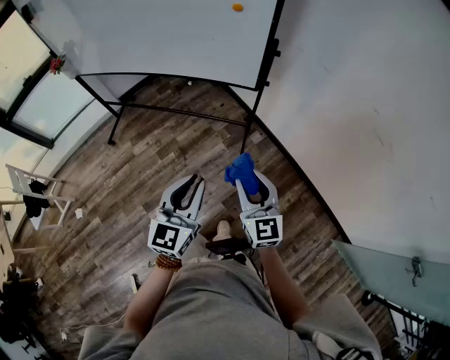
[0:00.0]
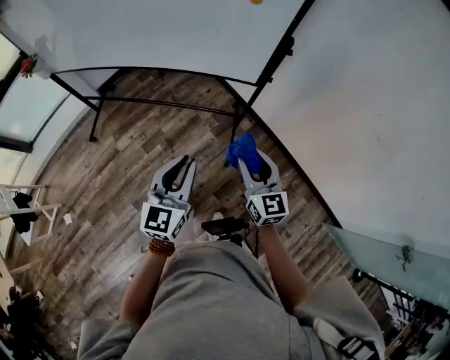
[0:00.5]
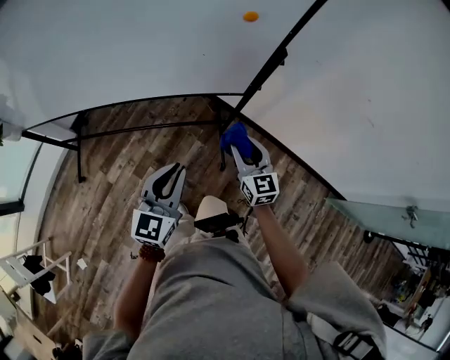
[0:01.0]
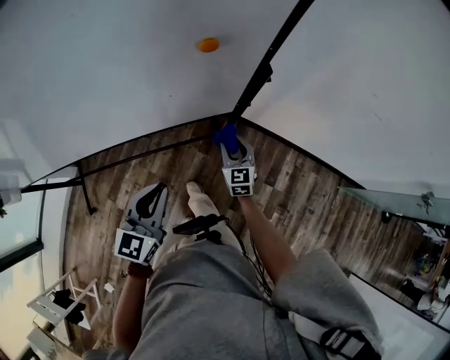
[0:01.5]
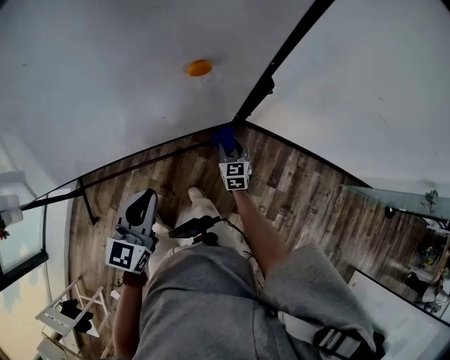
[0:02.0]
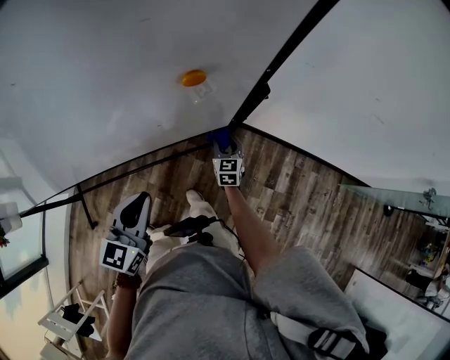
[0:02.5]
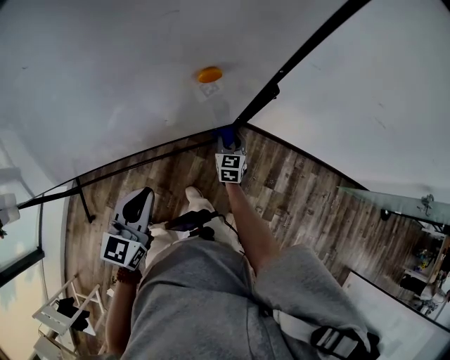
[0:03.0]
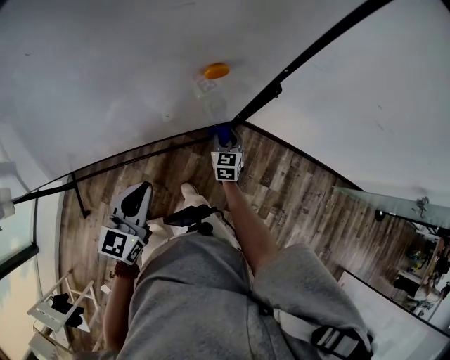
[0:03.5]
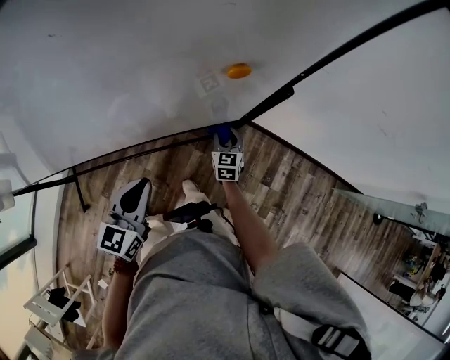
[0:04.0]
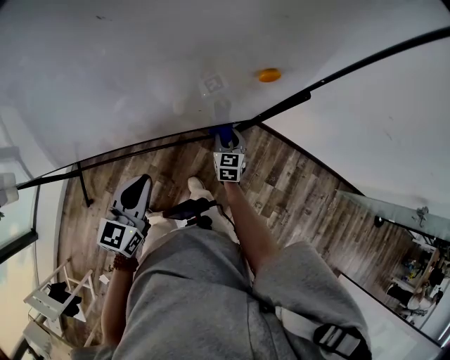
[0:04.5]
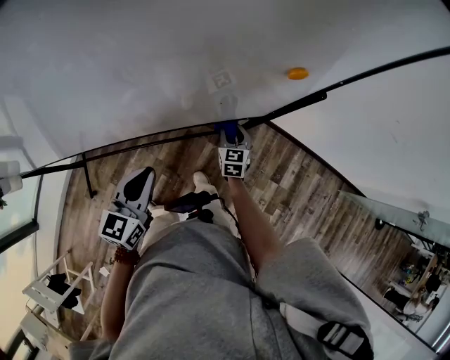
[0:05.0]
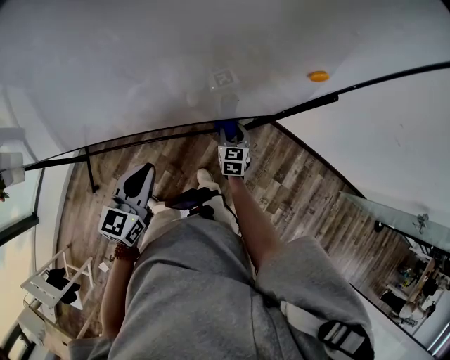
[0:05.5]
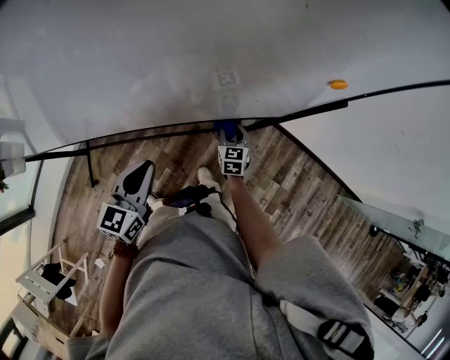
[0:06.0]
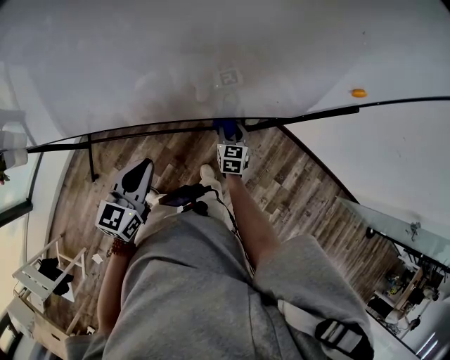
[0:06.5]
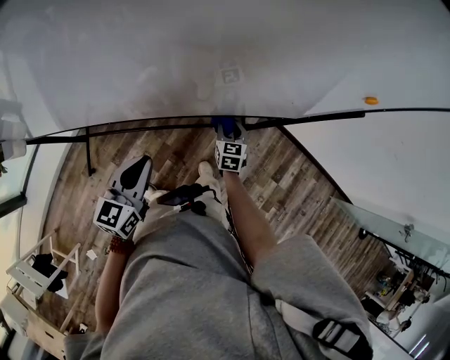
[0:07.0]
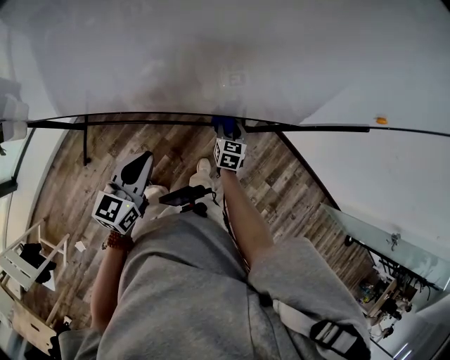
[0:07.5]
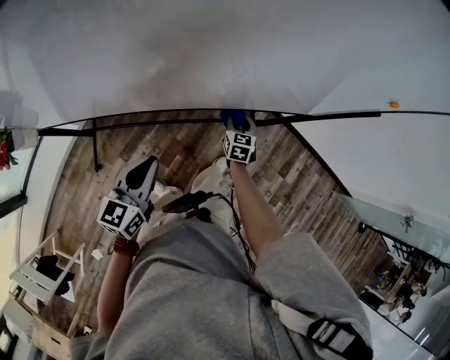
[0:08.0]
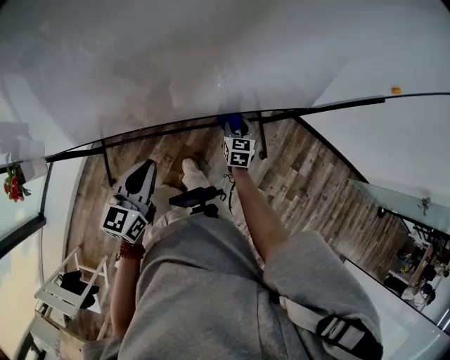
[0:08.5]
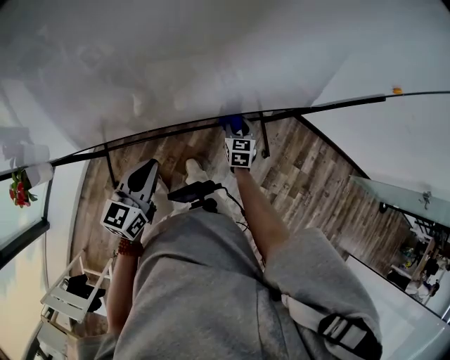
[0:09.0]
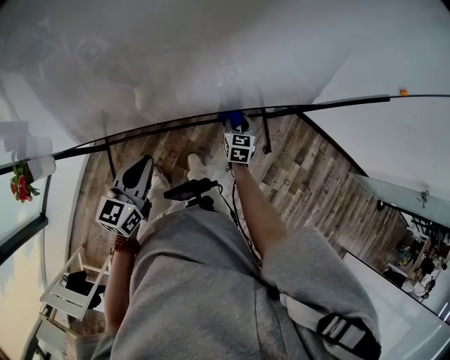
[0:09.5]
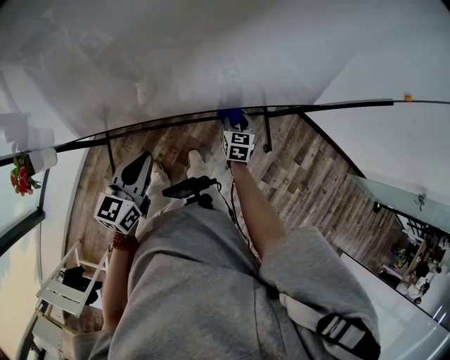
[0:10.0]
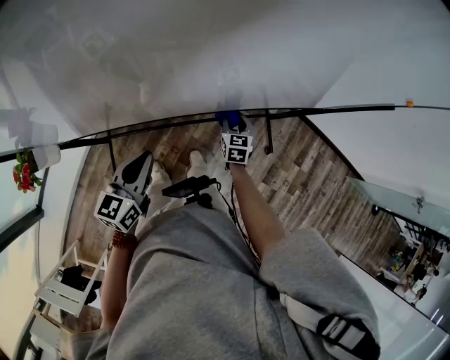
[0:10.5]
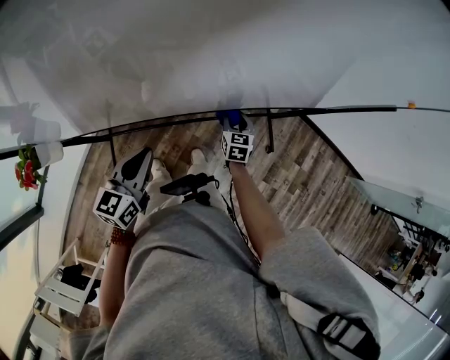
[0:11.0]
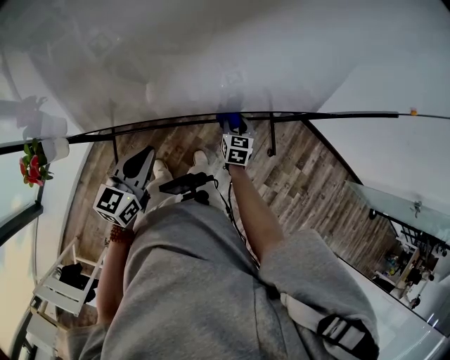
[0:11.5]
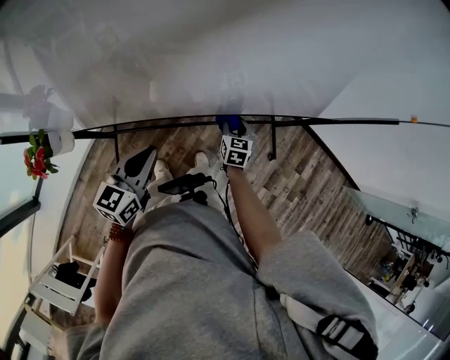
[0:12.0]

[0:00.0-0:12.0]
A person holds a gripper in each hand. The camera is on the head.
0:00.0 to 0:02.0: The two grippers travel together, approximately 40 cm. The left gripper swivels about 30 degrees; the right gripper changes its angle by roughly 40 degrees.
0:02.0 to 0:04.0: The grippers stay close to where they were, moving slightly.
0:04.0 to 0:06.0: Both grippers travel together to the left, about 15 cm.
0:06.0 to 0:08.0: The right gripper goes about 15 cm to the left. Meanwhile the left gripper shifts approximately 20 cm to the left and backward.
0:08.0 to 0:10.0: The grippers both shift to the left by about 10 cm.
0:10.0 to 0:12.0: Both grippers travel together to the left, approximately 10 cm.

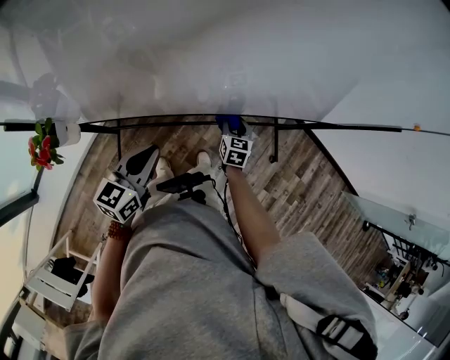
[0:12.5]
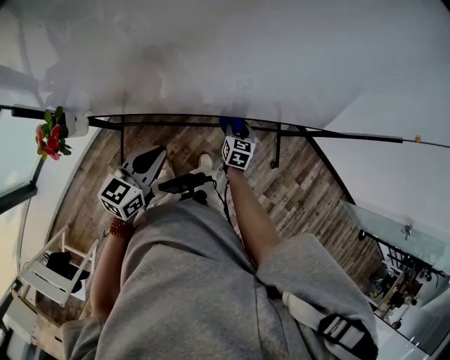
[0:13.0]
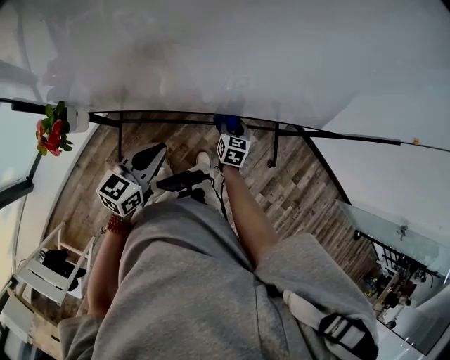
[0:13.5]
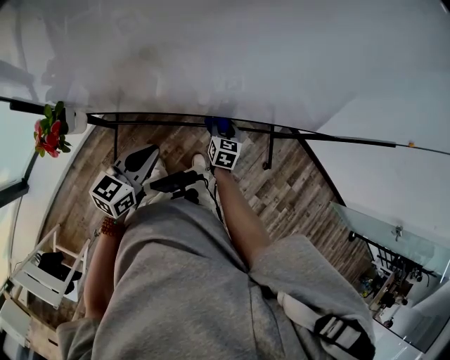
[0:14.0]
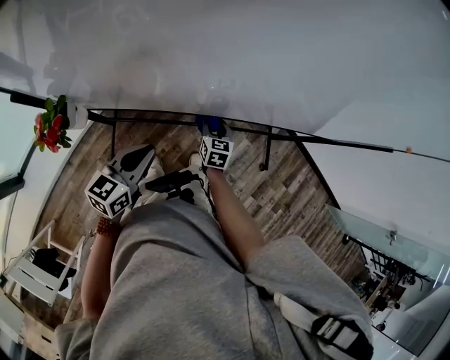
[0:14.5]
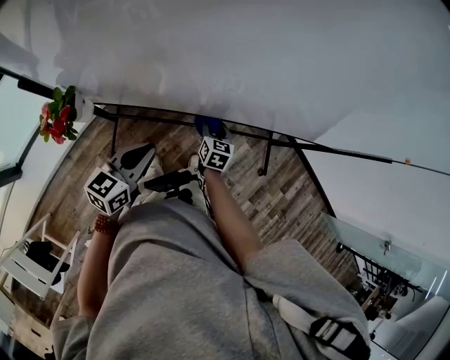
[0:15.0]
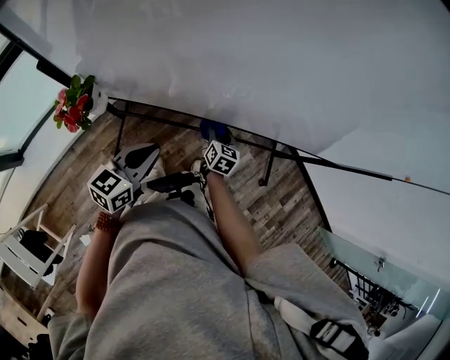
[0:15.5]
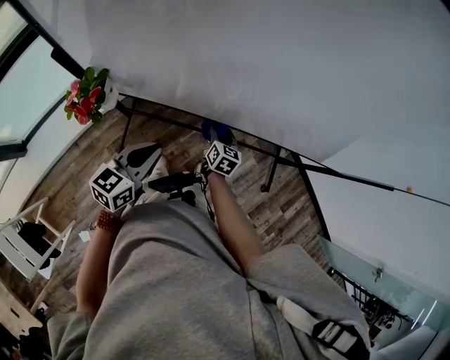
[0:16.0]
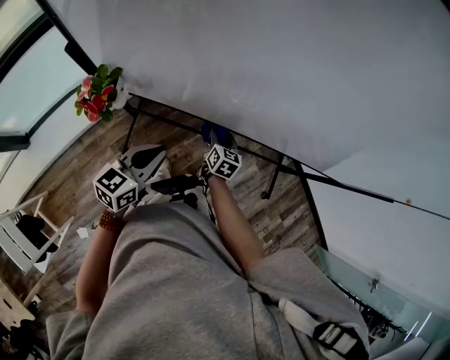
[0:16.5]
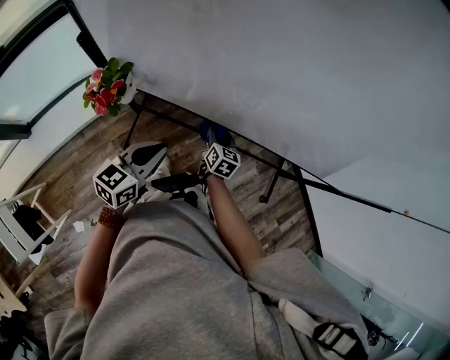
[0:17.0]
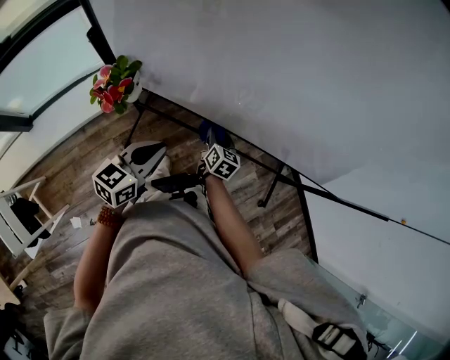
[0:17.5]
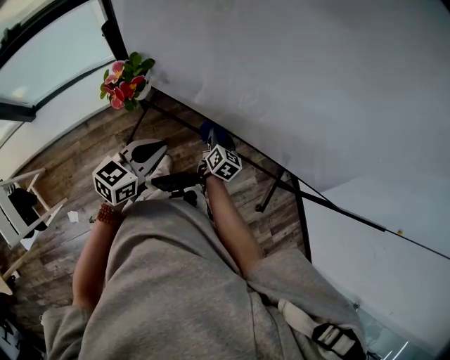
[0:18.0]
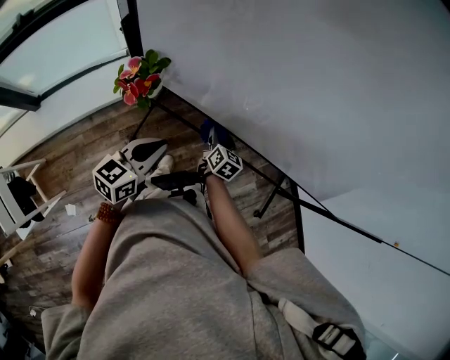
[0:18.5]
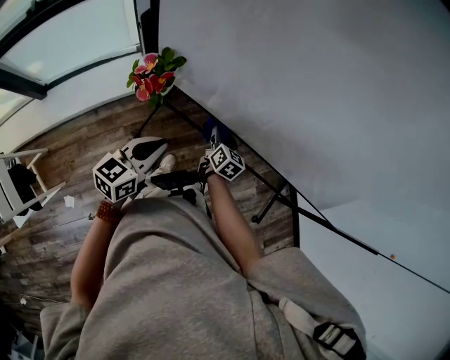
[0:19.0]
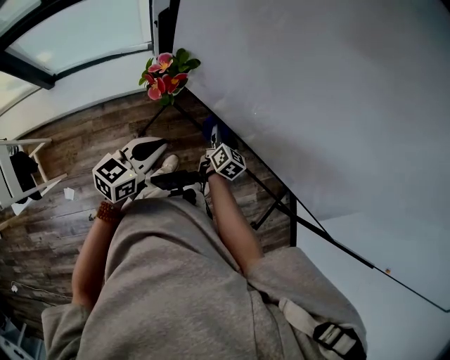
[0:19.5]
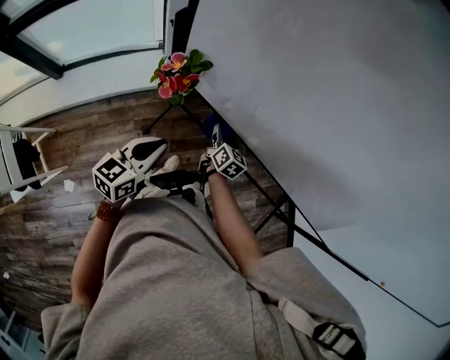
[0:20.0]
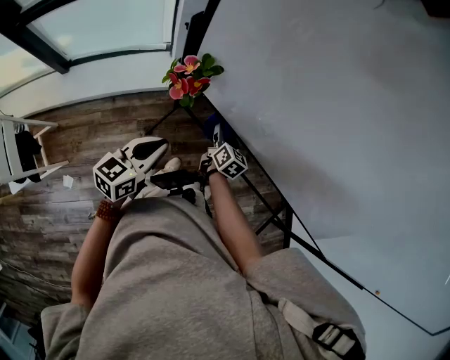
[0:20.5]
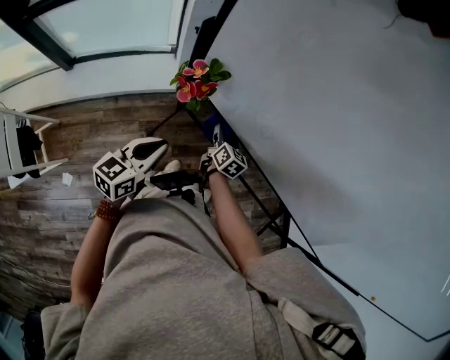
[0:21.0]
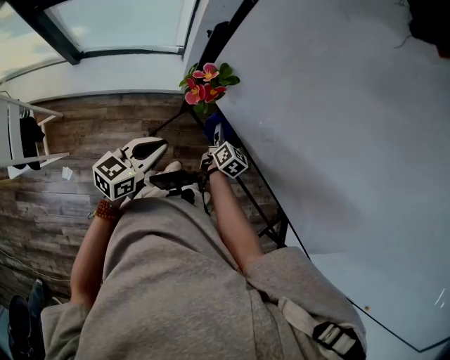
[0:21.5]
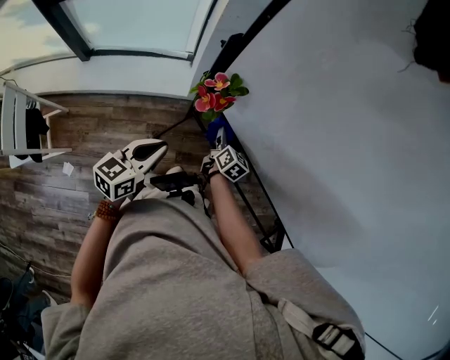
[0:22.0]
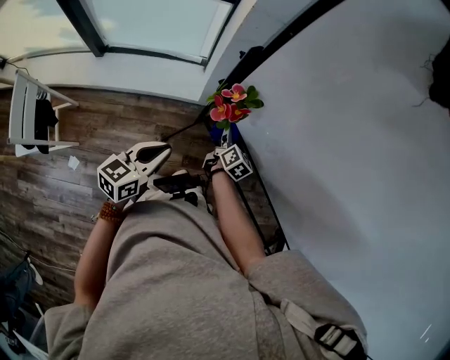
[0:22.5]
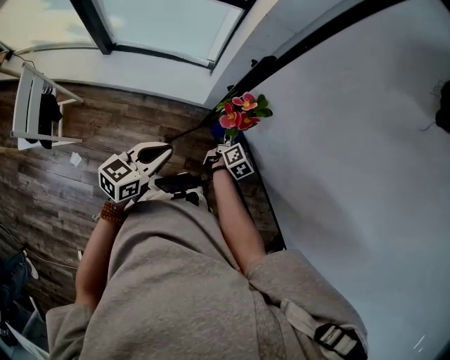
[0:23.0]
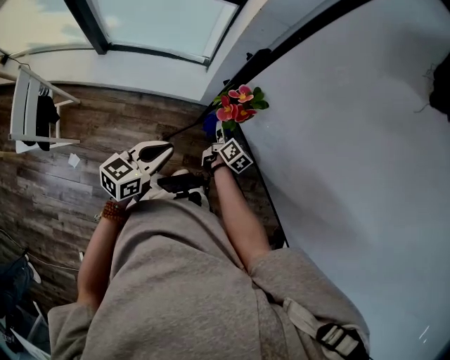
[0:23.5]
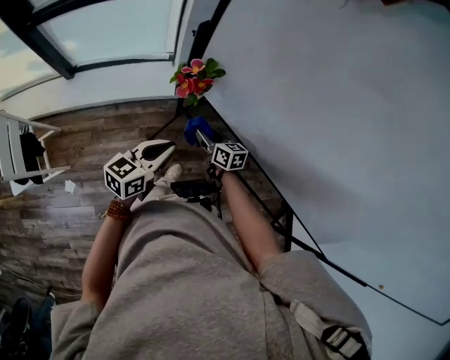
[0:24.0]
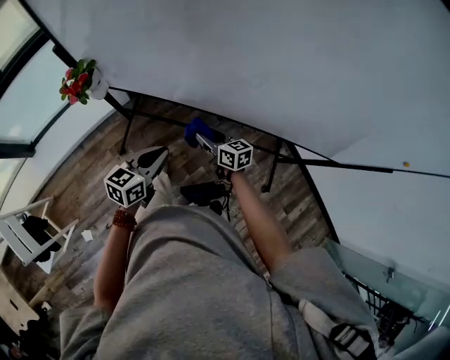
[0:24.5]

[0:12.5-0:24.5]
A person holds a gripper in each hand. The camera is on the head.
0:12.5 to 0:14.5: The left gripper ends up roughly 5 cm from where it was. Meanwhile the right gripper travels to the left by roughly 10 cm.
0:14.5 to 0:16.5: The left gripper shifts approximately 5 cm to the left, while the right gripper is displaced to the left by about 10 cm.
0:16.5 to 0:18.5: The grippers both shift to the left by some 5 cm.
0:18.5 to 0:20.5: The right gripper shifts some 10 cm to the left; the left gripper travels to the left by some 5 cm.
0:20.5 to 0:22.5: The two grippers go about 10 cm to the left.
0:22.5 to 0:24.5: The left gripper is displaced to the right by about 30 cm, and turns by about 30 degrees. The right gripper moves to the right and backward, roughly 35 cm.

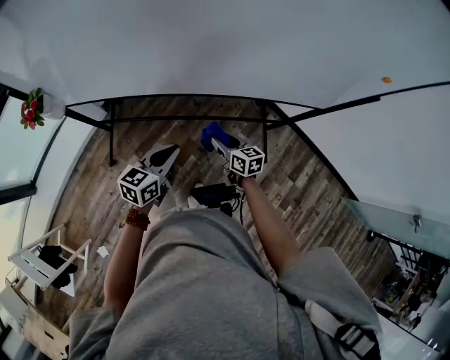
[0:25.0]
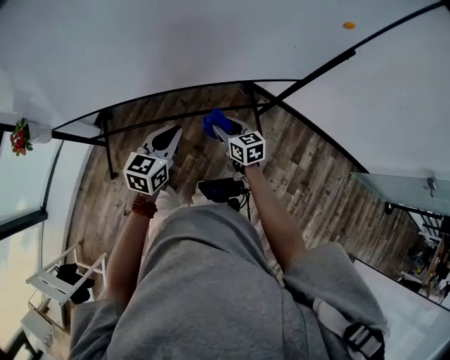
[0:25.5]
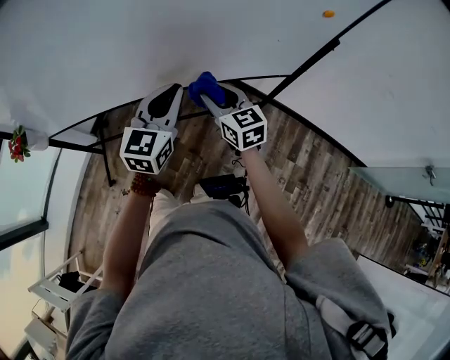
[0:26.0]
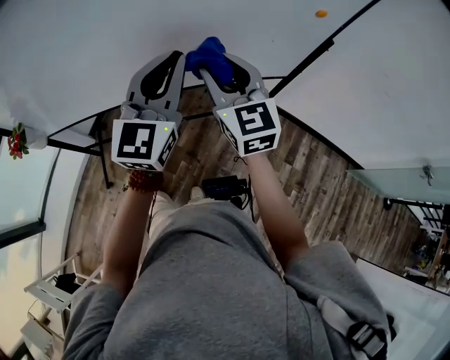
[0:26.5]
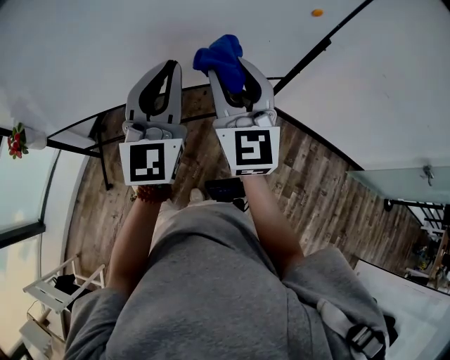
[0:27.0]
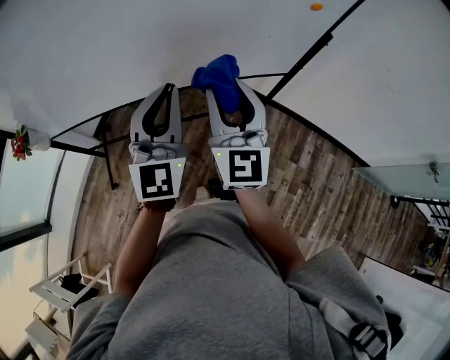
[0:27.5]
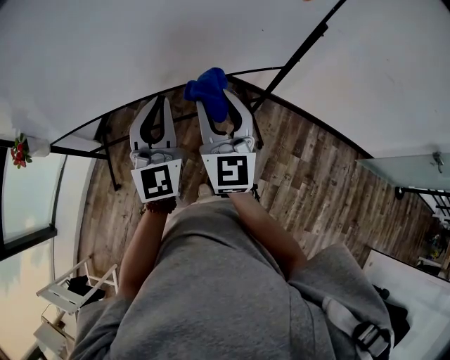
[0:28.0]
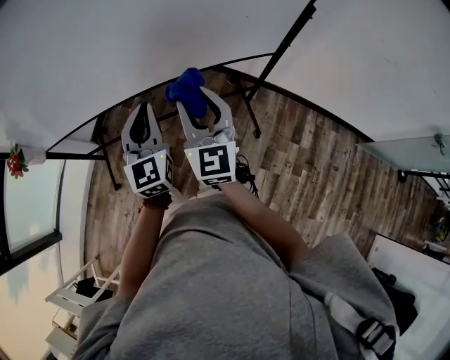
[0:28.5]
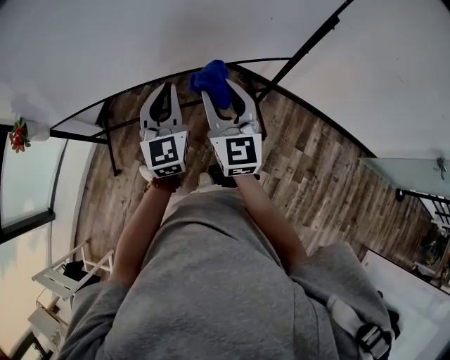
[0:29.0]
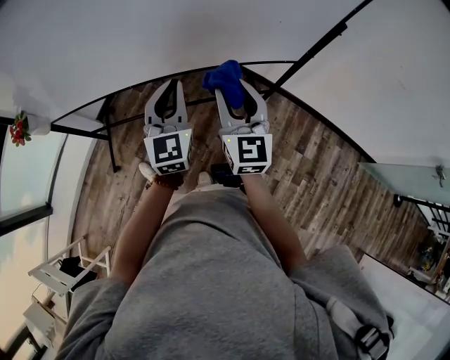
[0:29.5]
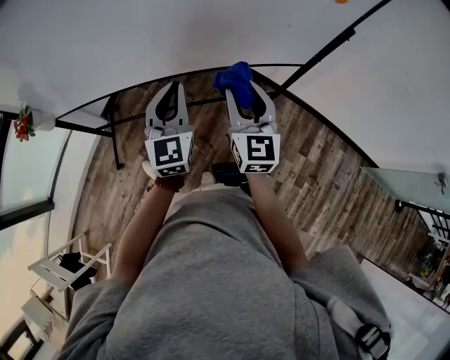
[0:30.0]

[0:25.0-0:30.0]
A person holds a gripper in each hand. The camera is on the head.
0:25.0 to 0:27.5: The left gripper shifts about 30 cm upward and to the right, and tips its fingers upward by approximately 30 degrees; the right gripper goes about 35 cm upward, and tips its fingers upward by some 30 degrees.
0:27.5 to 0:30.0: Both grippers move downward, about 10 cm.
